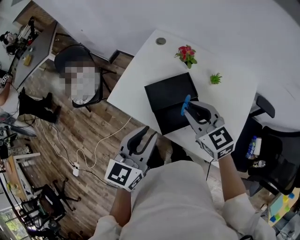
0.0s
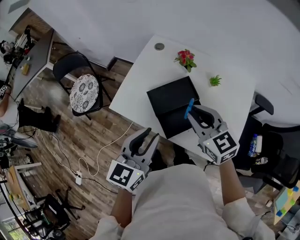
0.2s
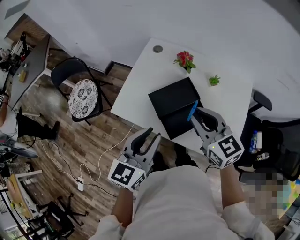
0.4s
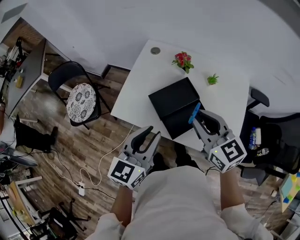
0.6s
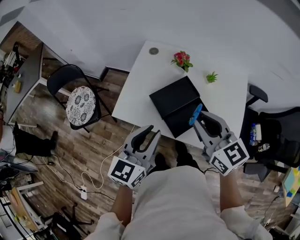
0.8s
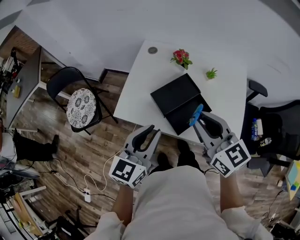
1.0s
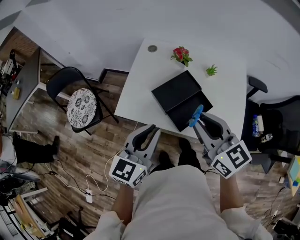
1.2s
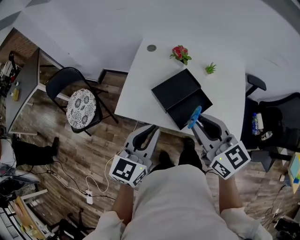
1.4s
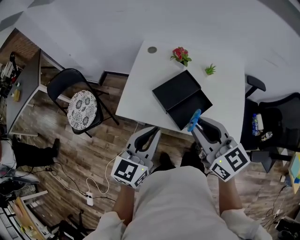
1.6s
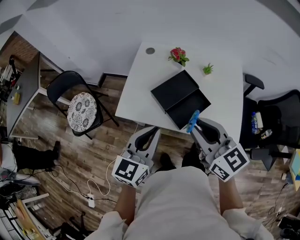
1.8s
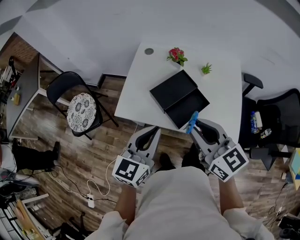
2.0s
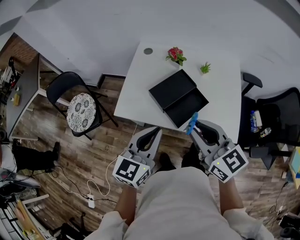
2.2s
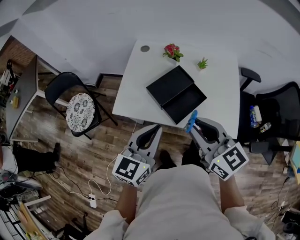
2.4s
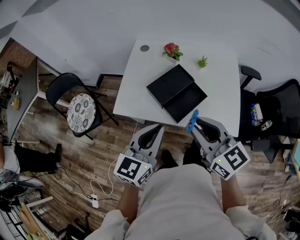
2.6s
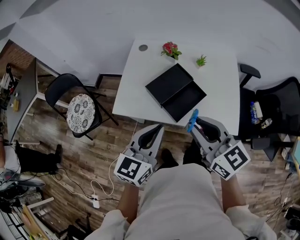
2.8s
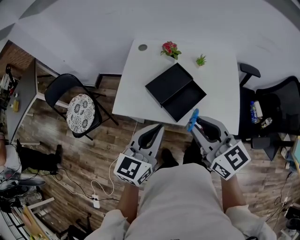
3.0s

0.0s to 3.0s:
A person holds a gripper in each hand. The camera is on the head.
0.0s to 1.6s: The left gripper moves to the left, about 10 cm; the right gripper moves backward, upward and to the left, approximately 15 cm, and swivels some 20 degrees.
1.6s to 3.0s: The grippers make only small movements.

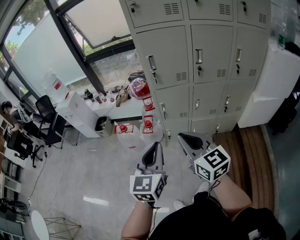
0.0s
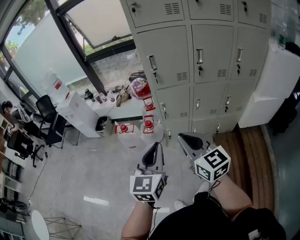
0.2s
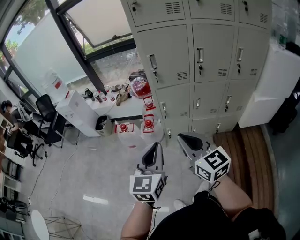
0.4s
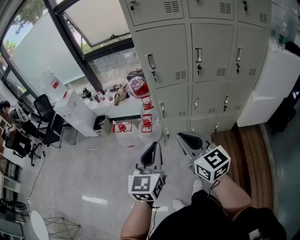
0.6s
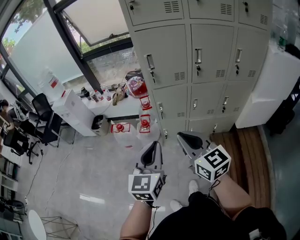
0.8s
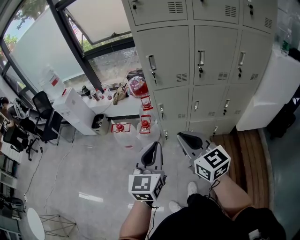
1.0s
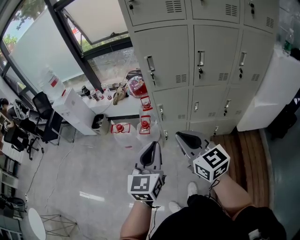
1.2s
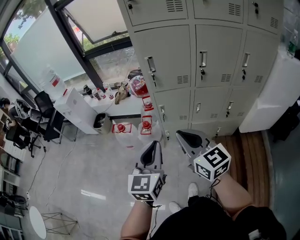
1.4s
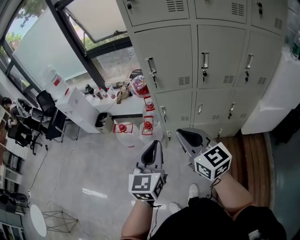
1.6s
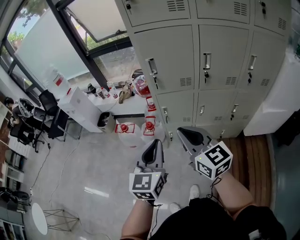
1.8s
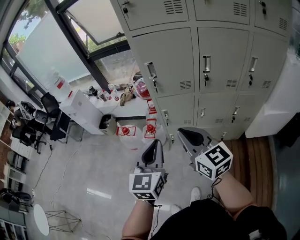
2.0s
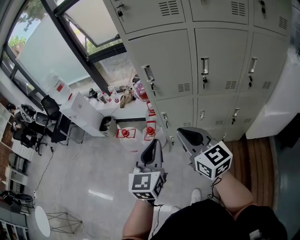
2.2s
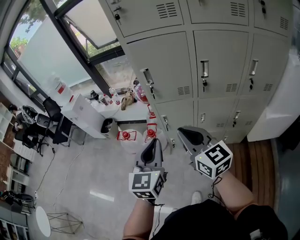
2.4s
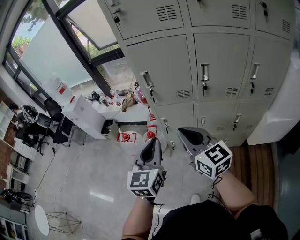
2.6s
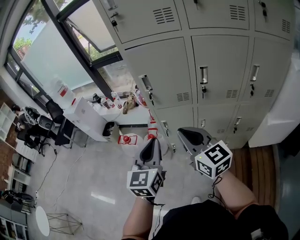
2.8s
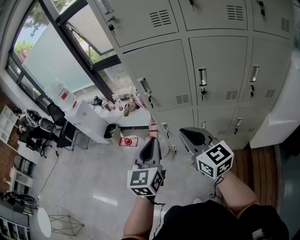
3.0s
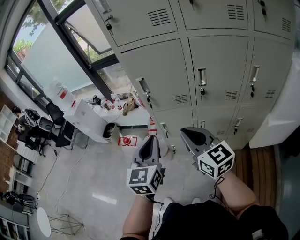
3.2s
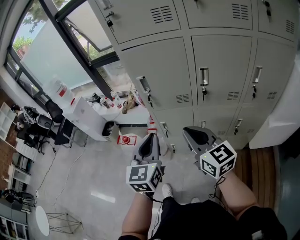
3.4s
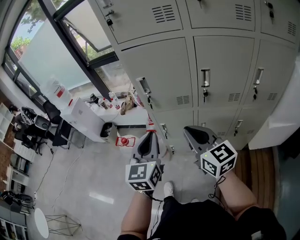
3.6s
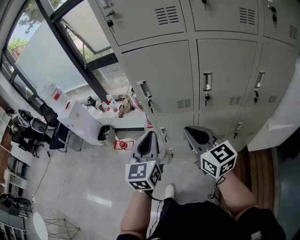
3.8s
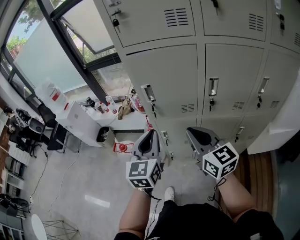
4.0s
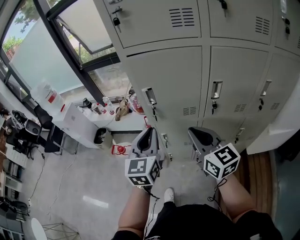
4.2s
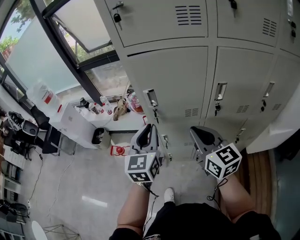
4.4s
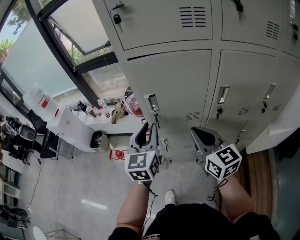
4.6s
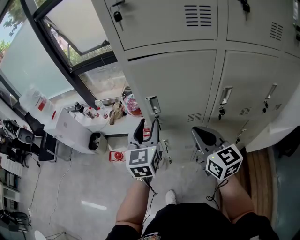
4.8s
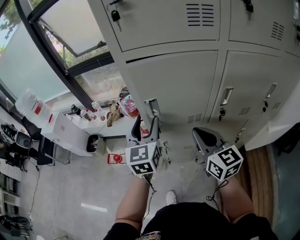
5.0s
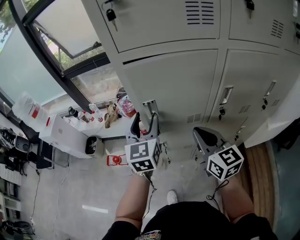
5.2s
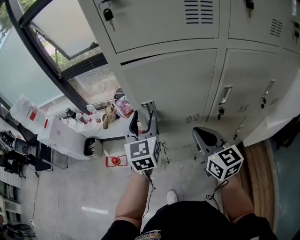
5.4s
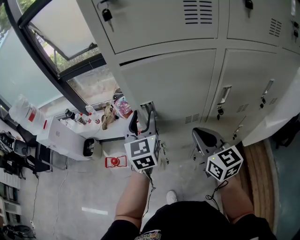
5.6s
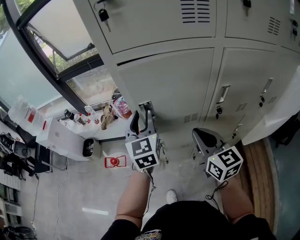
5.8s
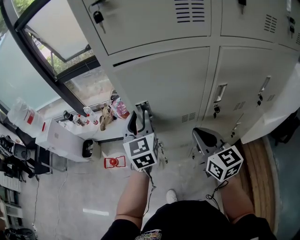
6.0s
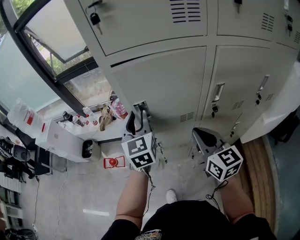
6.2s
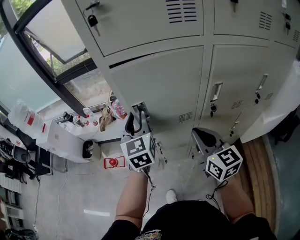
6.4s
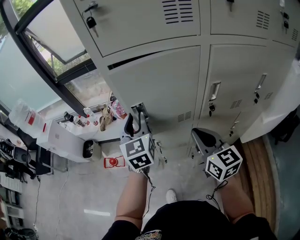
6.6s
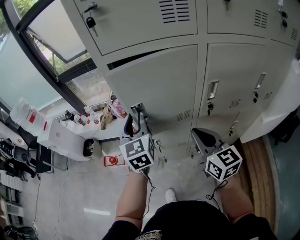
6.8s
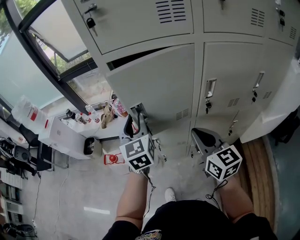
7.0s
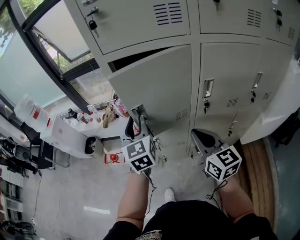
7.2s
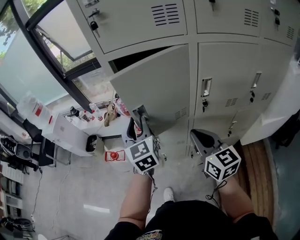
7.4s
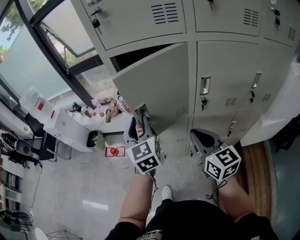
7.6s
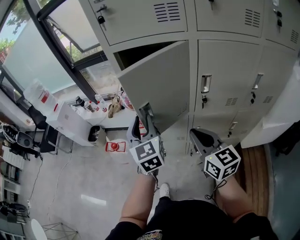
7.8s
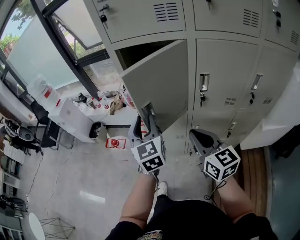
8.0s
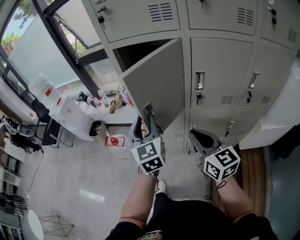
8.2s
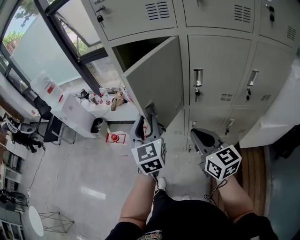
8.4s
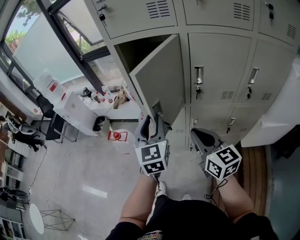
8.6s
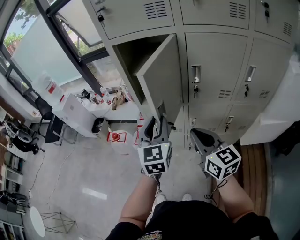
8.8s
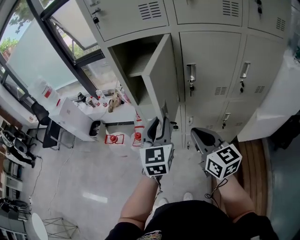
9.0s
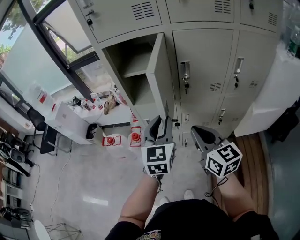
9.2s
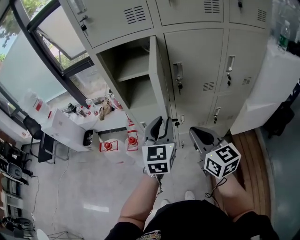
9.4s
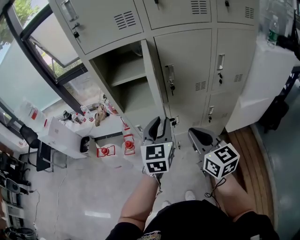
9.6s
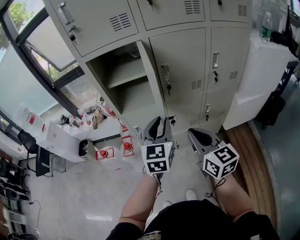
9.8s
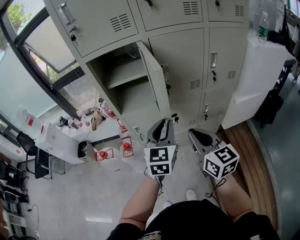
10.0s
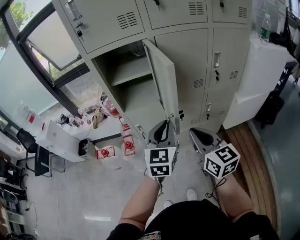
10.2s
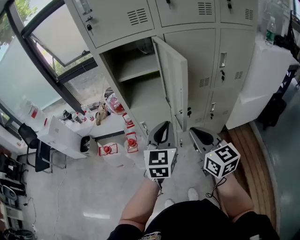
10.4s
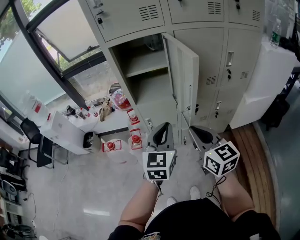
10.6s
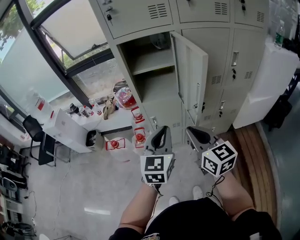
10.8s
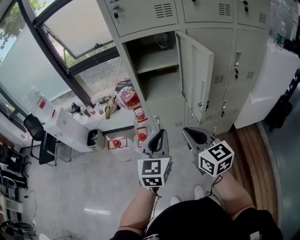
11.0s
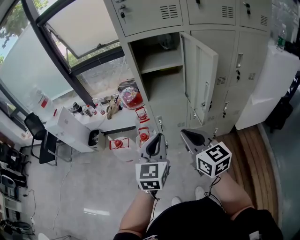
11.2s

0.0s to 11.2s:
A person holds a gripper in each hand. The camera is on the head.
0.0s to 1.6s: Both grippers move forward, roughly 5 cm.
1.6s to 3.2s: The left gripper moves forward and to the right, about 15 cm; the right gripper heads to the right and forward, covering about 15 cm.
3.2s to 4.8s: The two grippers go some 20 cm forward. The left gripper opens its fingers.
4.8s to 6.4s: The left gripper moves forward, some 5 cm.
6.4s to 8.0s: Both grippers move backward, about 15 cm.
8.0s to 9.6s: The right gripper shifts about 10 cm backward. The left gripper goes roughly 20 cm to the right and backward, and swivels about 30 degrees.
9.6s to 11.2s: The left gripper shifts about 20 cm to the left and backward; the right gripper goes about 20 cm to the left.

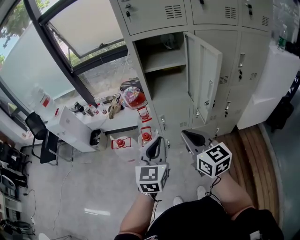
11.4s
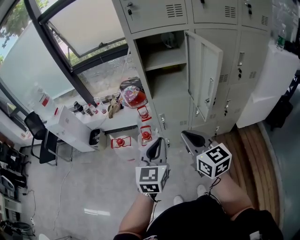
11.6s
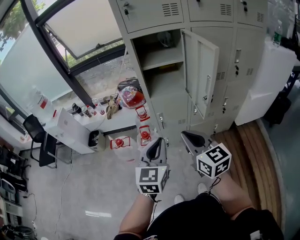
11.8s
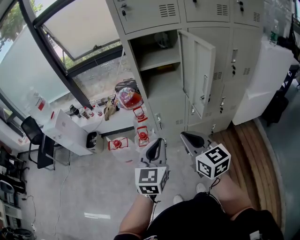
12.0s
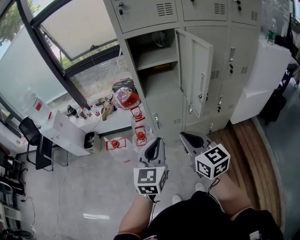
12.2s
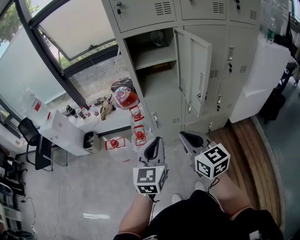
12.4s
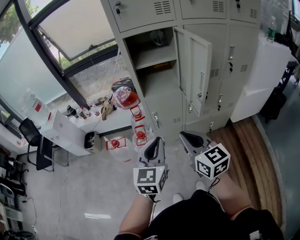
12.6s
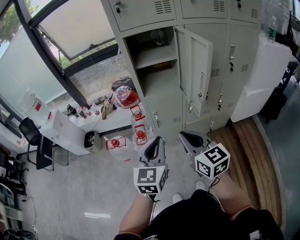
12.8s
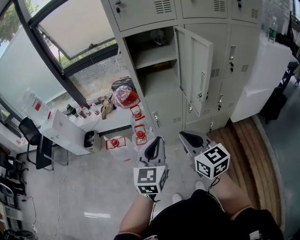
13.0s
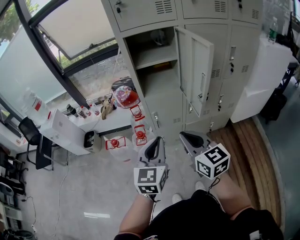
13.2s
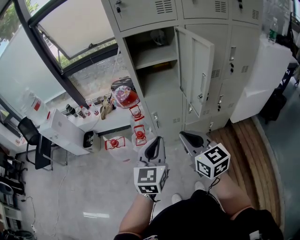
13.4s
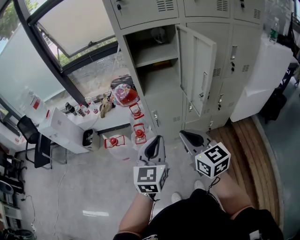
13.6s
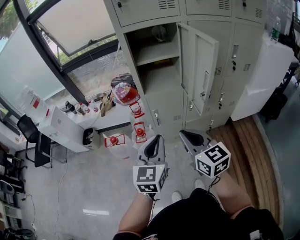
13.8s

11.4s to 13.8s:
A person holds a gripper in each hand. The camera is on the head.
11.4s to 13.8s: The grippers stay close to where they were, moving slightly.

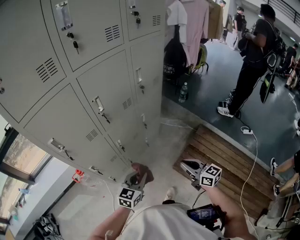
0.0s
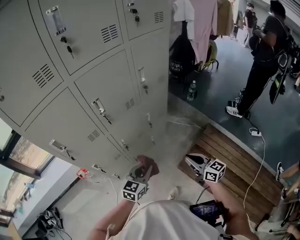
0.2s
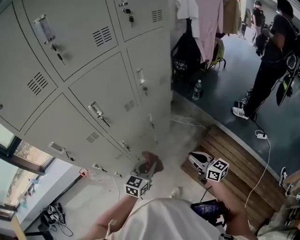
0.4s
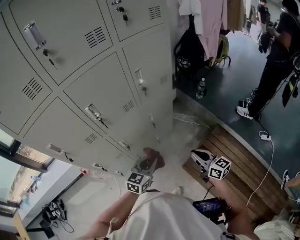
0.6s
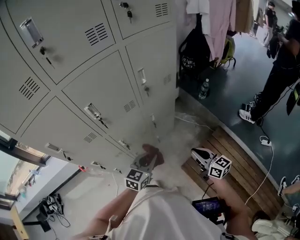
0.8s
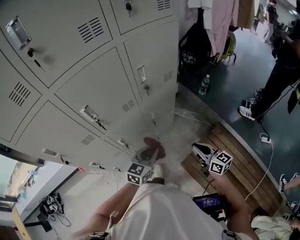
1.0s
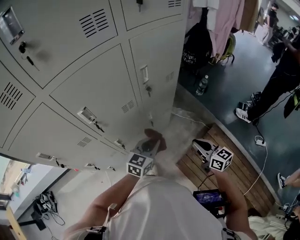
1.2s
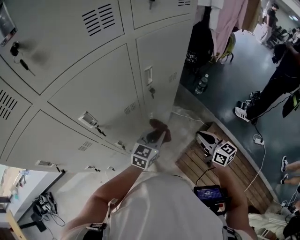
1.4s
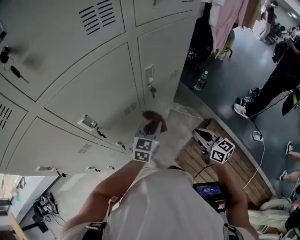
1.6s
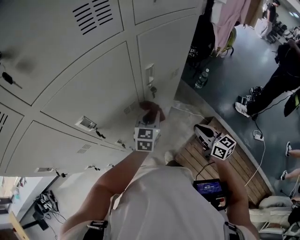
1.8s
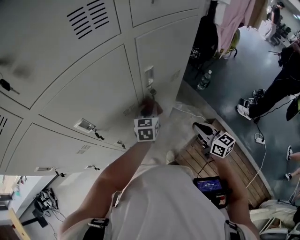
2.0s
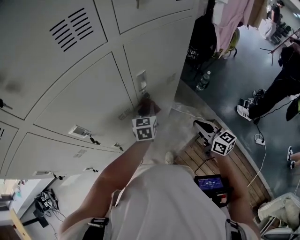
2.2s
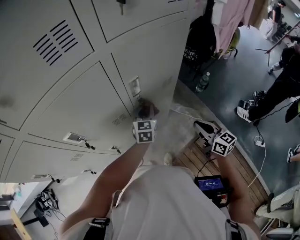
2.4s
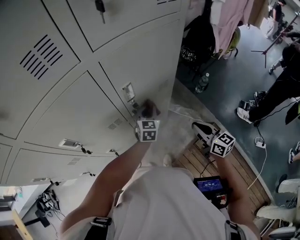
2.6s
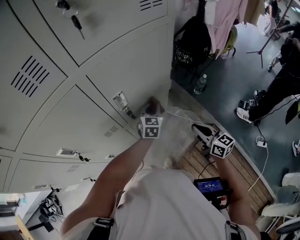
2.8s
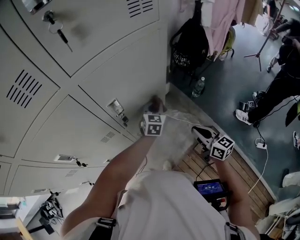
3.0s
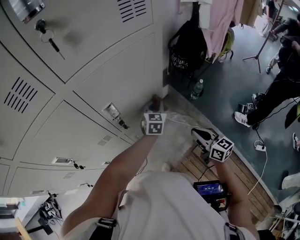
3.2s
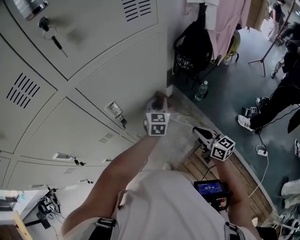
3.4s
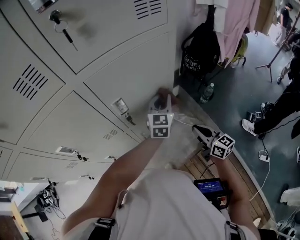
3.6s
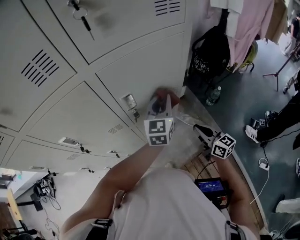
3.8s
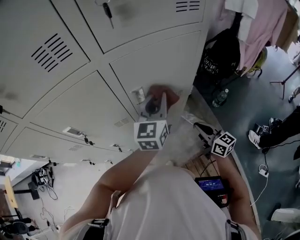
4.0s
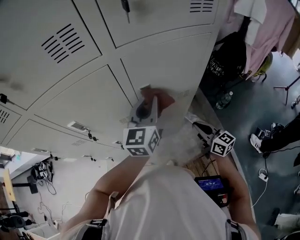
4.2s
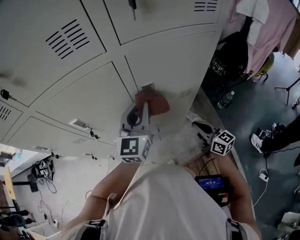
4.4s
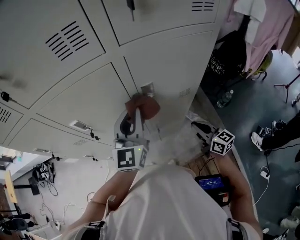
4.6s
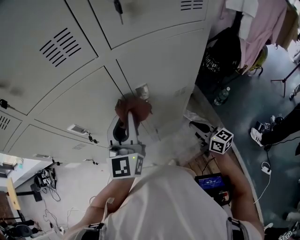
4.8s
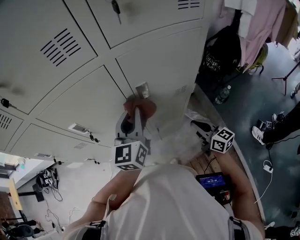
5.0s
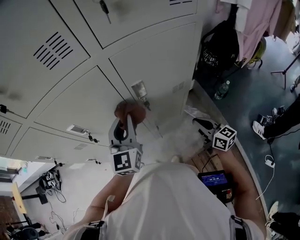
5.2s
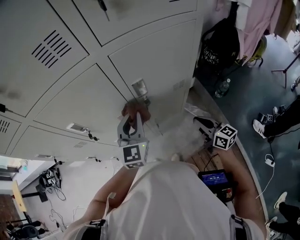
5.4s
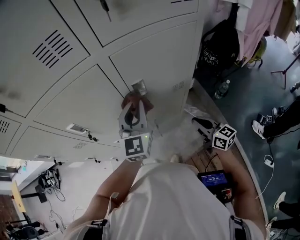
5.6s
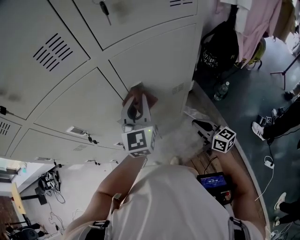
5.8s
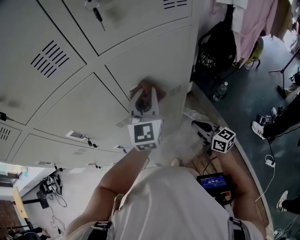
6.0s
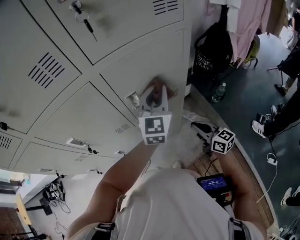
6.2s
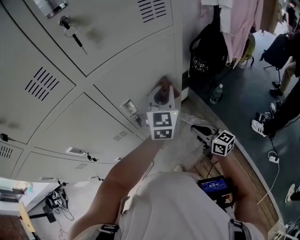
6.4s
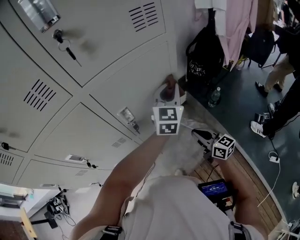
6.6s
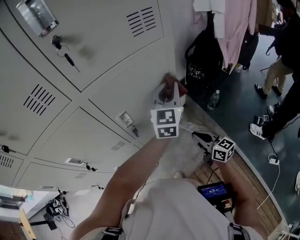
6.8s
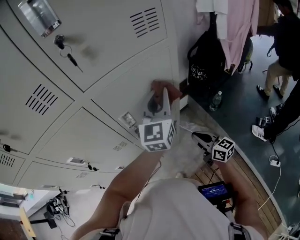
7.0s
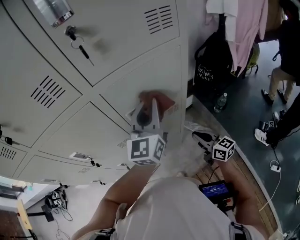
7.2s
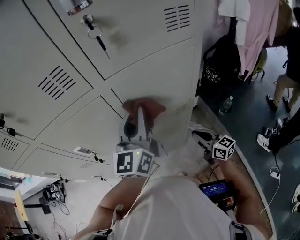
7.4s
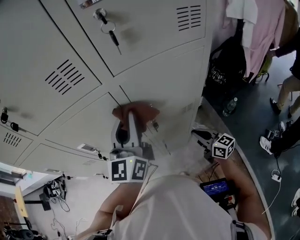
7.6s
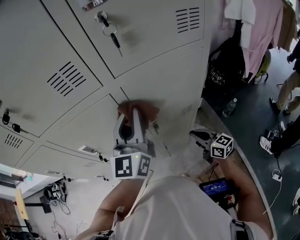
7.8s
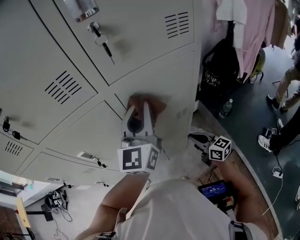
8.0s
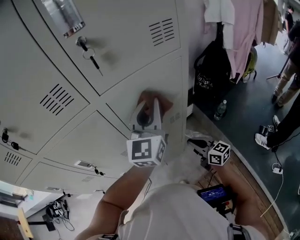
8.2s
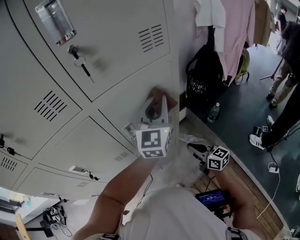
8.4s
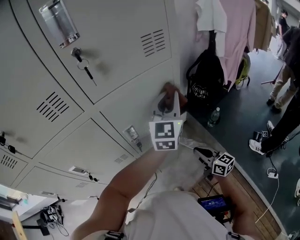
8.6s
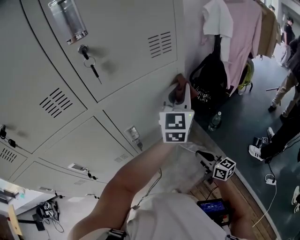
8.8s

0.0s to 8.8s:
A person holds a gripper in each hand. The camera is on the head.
0.0s to 1.4s: The grippers both shift forward and to the right by about 30 cm.
1.4s to 3.0s: The right gripper goes about 15 cm forward and to the right. Meanwhile the left gripper heads forward and to the right, covering roughly 30 cm, and turns by approximately 20 degrees.
3.0s to 4.4s: The left gripper travels to the left and upward by some 30 cm, and changes its angle by some 30 degrees. The right gripper is displaced to the left and forward by approximately 10 cm.
4.4s to 5.8s: The left gripper goes up and down, roughly 10 cm each way, reversing 2 times.
5.8s to 7.4s: The left gripper travels upward by approximately 10 cm, and reaches approximately 20 cm to the right, then returns.
7.4s to 8.8s: The right gripper goes approximately 5 cm to the right. Meanwhile the left gripper is displaced to the right by roughly 25 cm, and turns by approximately 20 degrees.
